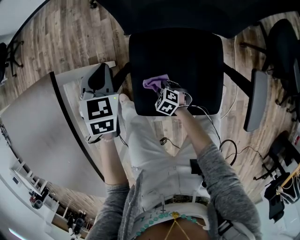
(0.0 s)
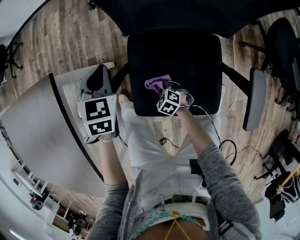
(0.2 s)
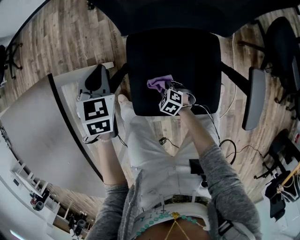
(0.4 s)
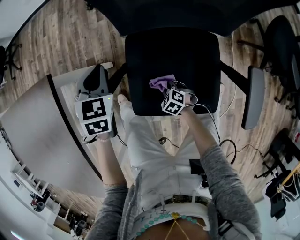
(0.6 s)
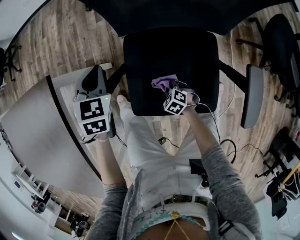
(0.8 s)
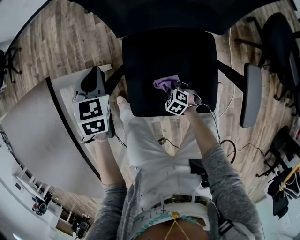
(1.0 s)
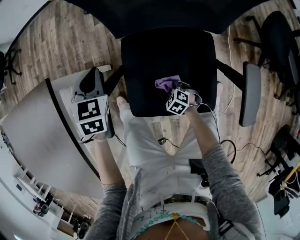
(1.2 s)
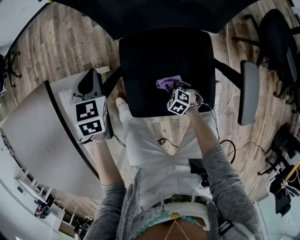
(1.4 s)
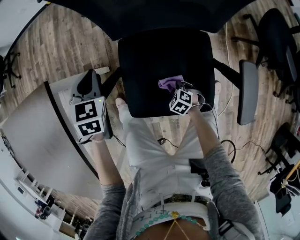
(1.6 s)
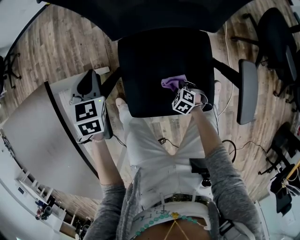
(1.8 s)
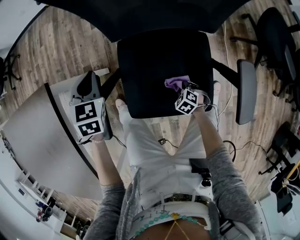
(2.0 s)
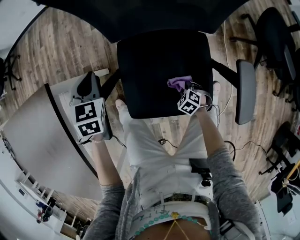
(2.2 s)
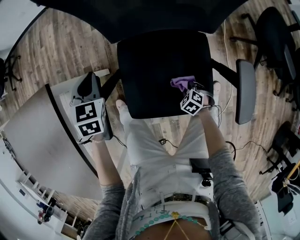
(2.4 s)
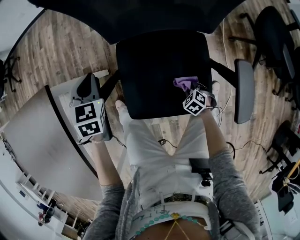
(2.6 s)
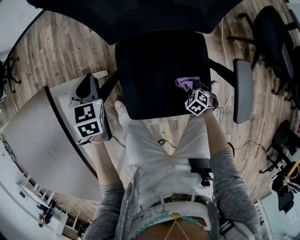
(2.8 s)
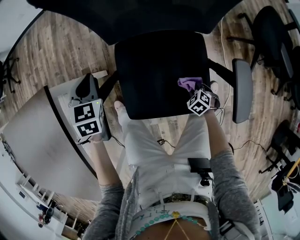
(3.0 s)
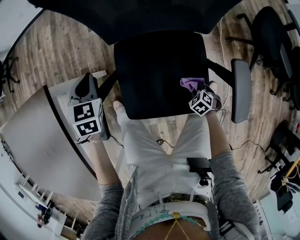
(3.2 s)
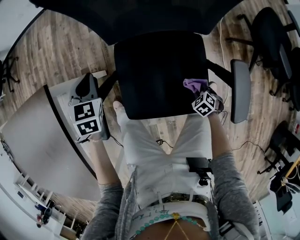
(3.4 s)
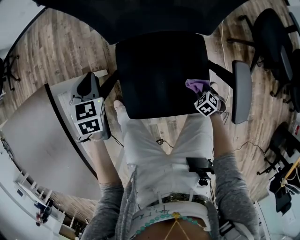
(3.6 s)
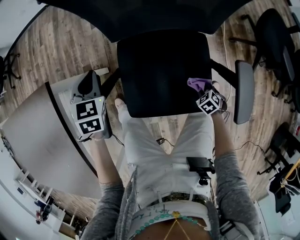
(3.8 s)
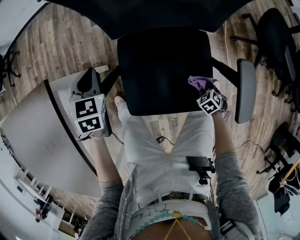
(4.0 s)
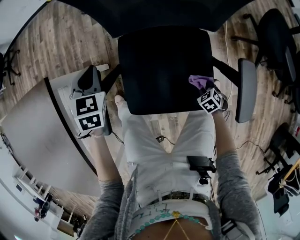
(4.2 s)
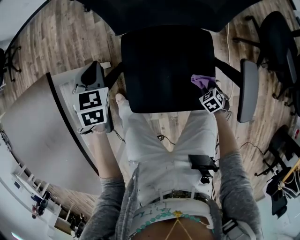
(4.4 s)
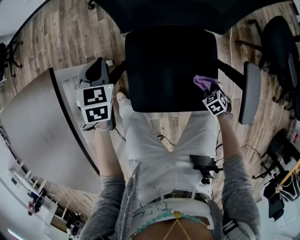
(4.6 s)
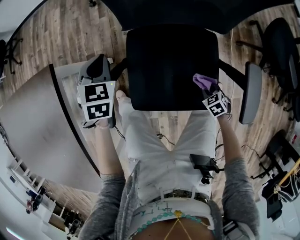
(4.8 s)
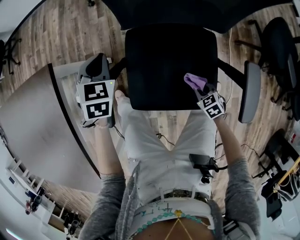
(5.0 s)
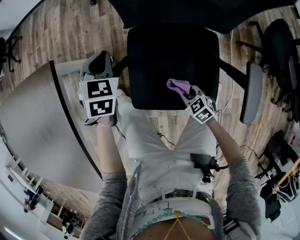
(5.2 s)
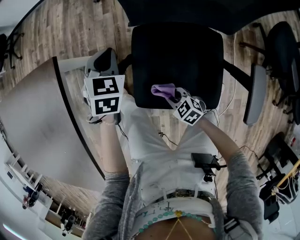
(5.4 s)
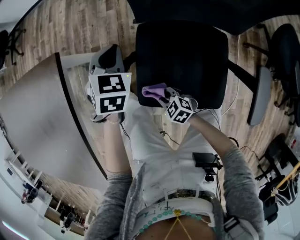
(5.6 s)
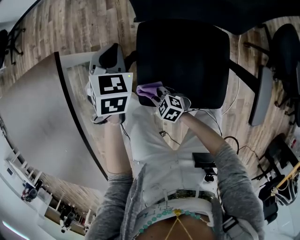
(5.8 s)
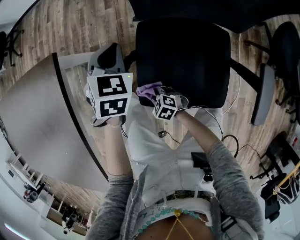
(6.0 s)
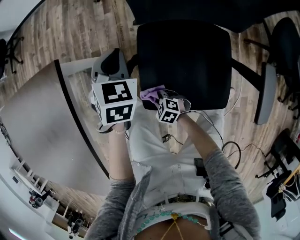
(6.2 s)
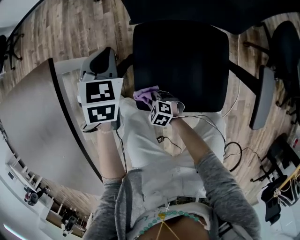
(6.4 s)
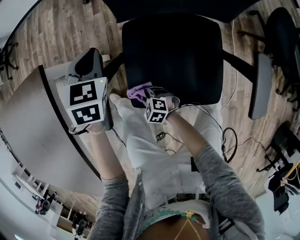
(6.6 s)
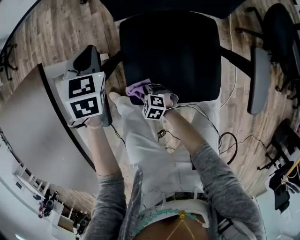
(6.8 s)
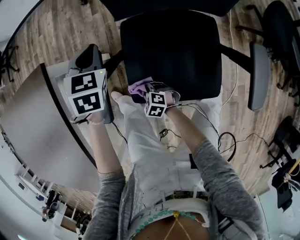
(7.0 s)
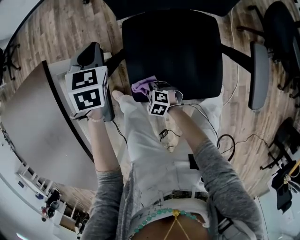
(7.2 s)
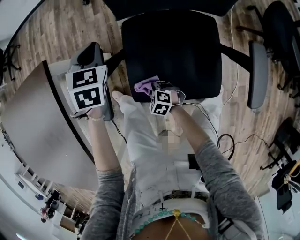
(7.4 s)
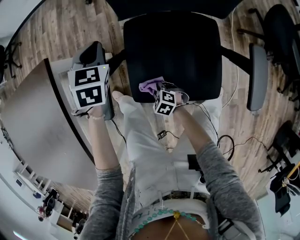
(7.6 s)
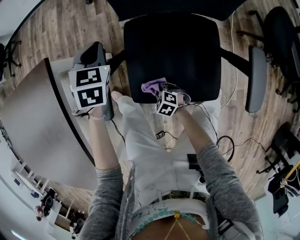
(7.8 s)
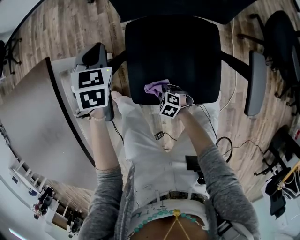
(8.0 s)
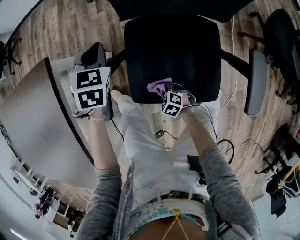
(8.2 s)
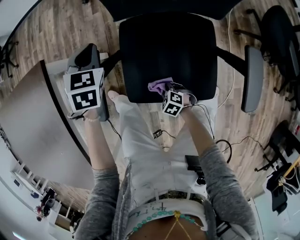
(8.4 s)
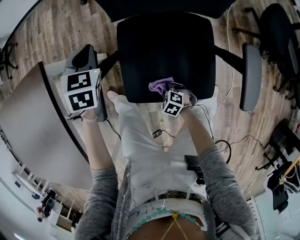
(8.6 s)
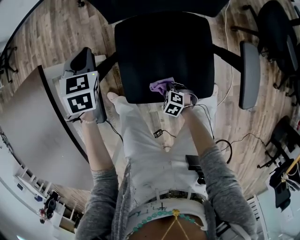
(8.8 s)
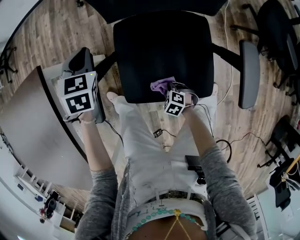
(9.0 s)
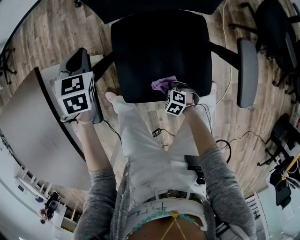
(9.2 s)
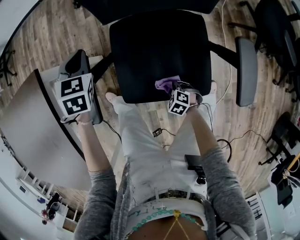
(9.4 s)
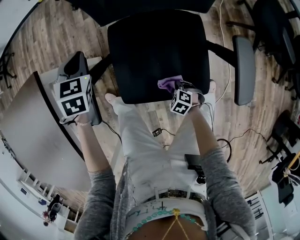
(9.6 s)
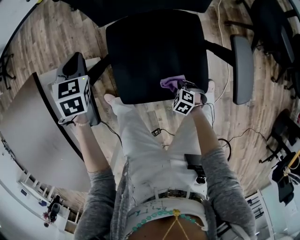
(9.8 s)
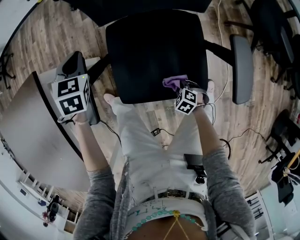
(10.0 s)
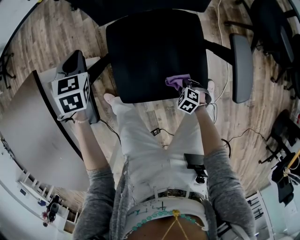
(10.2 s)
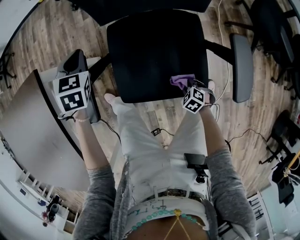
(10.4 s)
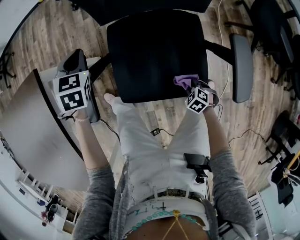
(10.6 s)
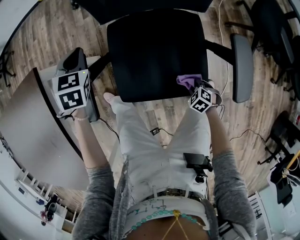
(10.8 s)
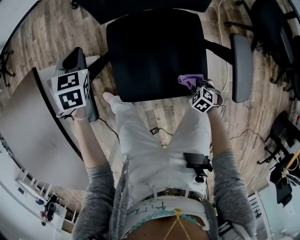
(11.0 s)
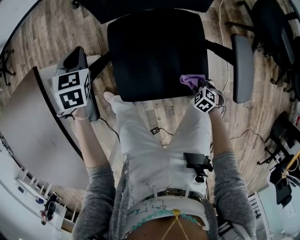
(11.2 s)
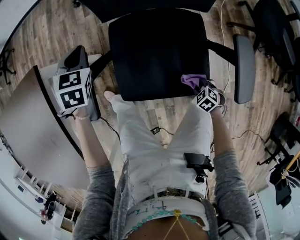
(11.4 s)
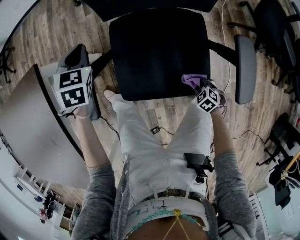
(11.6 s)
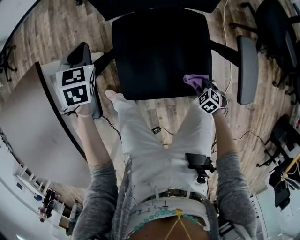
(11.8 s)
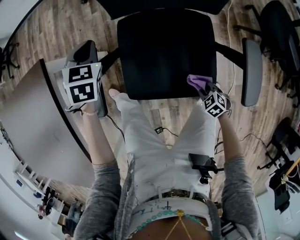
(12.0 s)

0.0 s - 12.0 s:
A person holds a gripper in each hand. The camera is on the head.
0.0 s - 1.6 s: The right gripper goes some 10 cm to the right and backward.
1.6 s - 3.0 s: The right gripper ends up approximately 10 cm from where it was.
3.0 s - 4.4 s: The grippers stay close to where they were, moving slightly.
4.4 s - 6.0 s: The right gripper travels upward and back again, some 10 cm each way, and changes its angle by about 40 degrees.
6.0 s - 7.6 s: The right gripper ends up roughly 5 cm from where it was.
7.6 s - 9.0 s: The right gripper is displaced backward and to the right by approximately 10 cm.
9.0 s - 10.4 s: The right gripper shifts by some 15 cm.
10.4 s - 12.0 s: The grippers move only a little.

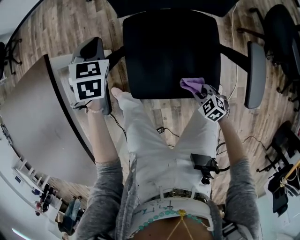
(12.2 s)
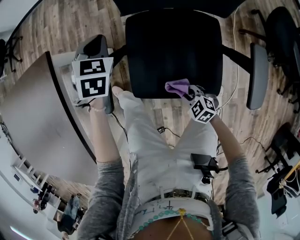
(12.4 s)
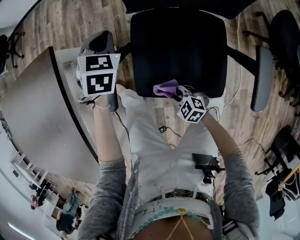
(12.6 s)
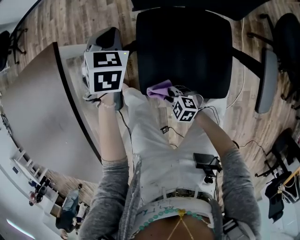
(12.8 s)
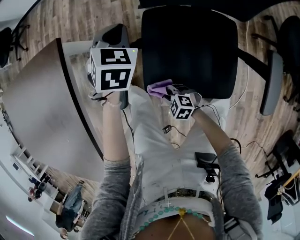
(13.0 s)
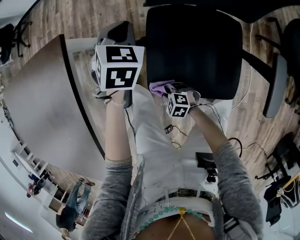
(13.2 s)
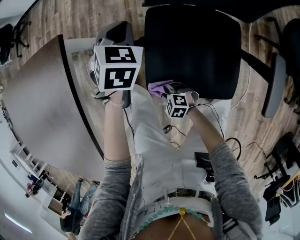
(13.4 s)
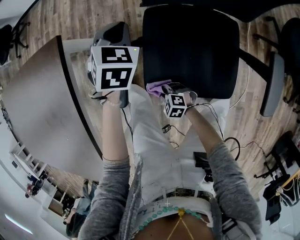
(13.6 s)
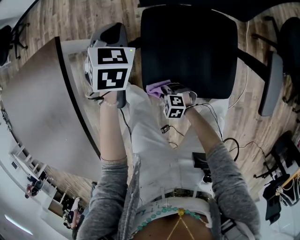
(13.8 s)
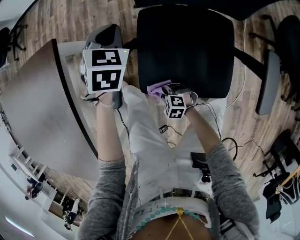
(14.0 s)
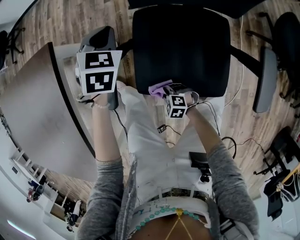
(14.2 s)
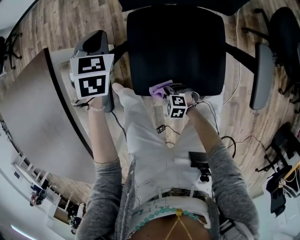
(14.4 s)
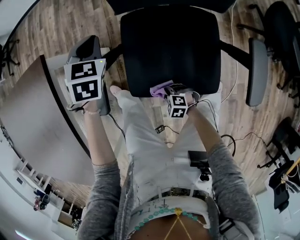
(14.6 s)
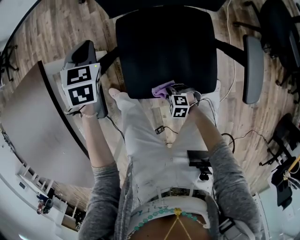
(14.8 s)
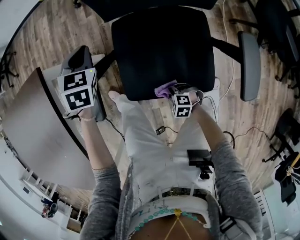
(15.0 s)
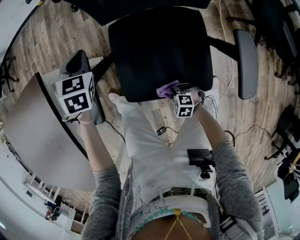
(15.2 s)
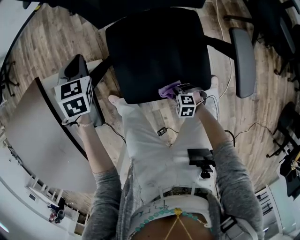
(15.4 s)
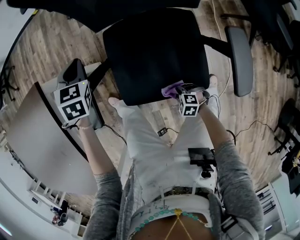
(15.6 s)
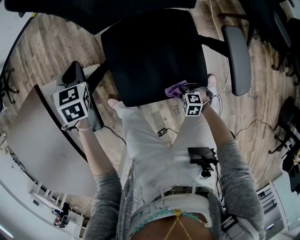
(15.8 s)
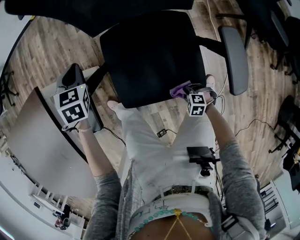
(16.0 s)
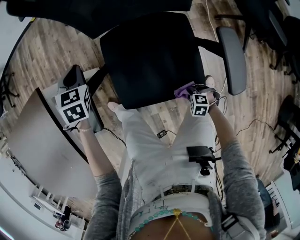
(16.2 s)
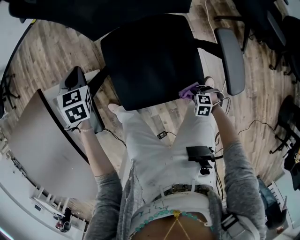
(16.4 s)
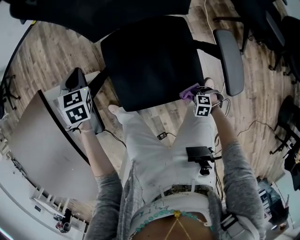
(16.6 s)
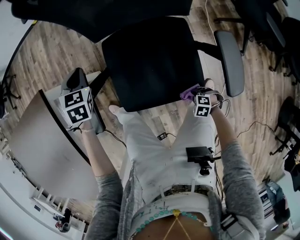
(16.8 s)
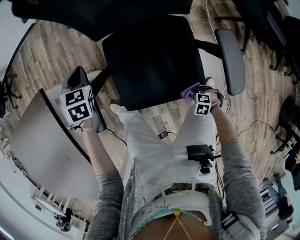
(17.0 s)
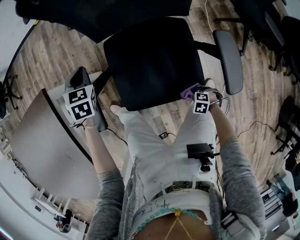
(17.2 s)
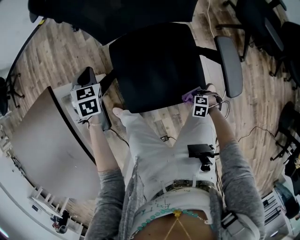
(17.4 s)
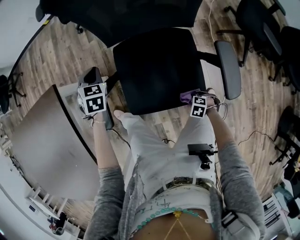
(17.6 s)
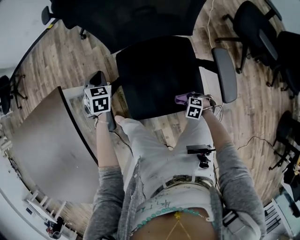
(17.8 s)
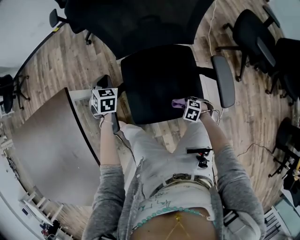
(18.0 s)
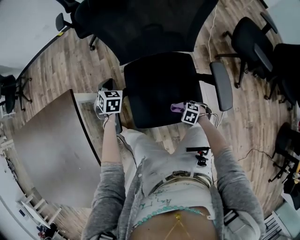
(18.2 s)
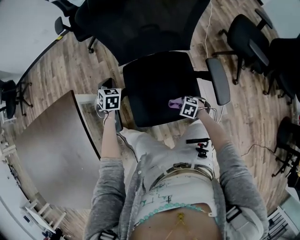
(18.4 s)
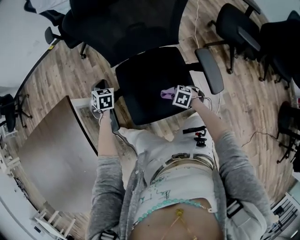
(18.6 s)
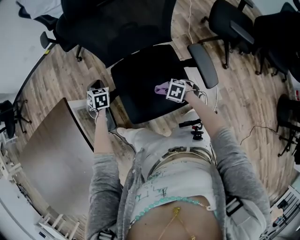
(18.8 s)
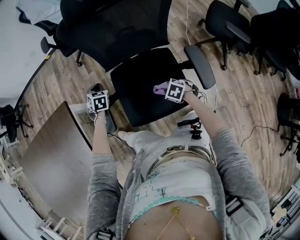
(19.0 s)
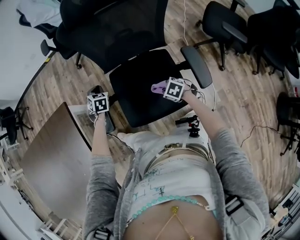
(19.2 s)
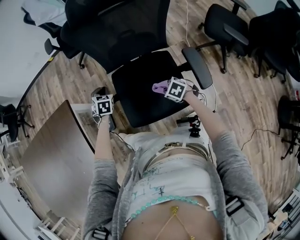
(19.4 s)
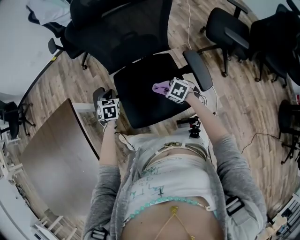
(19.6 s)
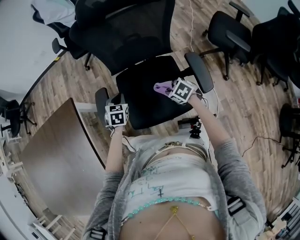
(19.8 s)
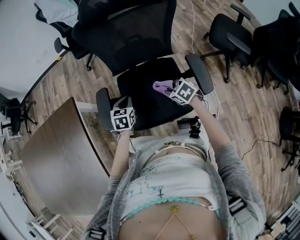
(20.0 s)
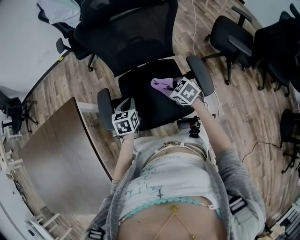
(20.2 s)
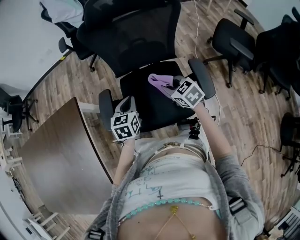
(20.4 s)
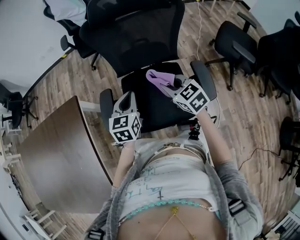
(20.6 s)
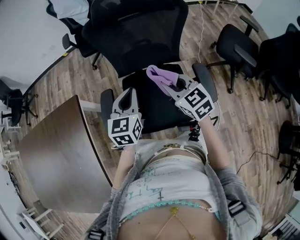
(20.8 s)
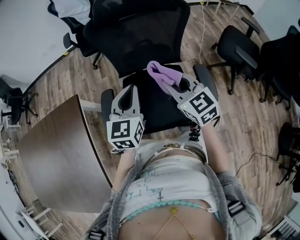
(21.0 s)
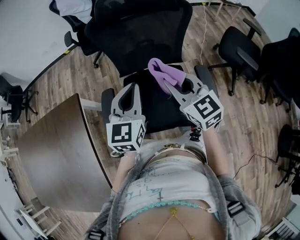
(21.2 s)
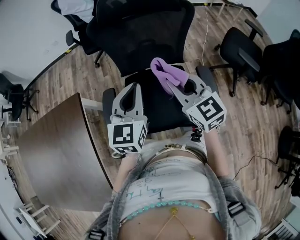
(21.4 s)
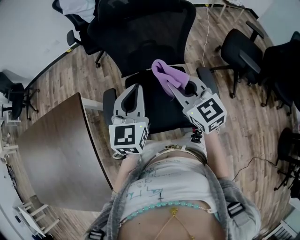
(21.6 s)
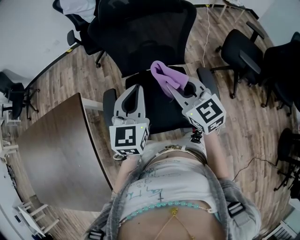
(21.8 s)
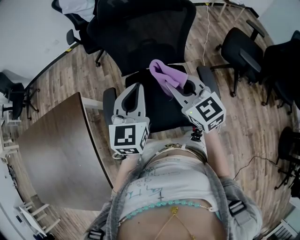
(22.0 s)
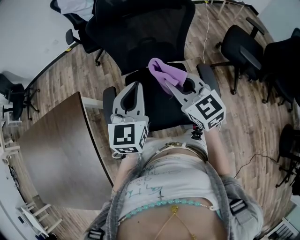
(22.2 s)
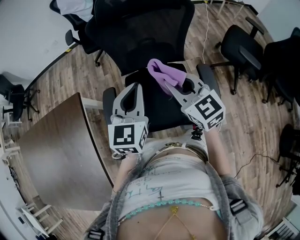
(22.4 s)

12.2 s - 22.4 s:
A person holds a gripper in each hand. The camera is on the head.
12.2 s - 13.6 s: The right gripper shifts some 25 cm to the left and forward, and changes its angle by approximately 30 degrees.
13.6 s - 15.2 s: The right gripper heads backward and to the right, covering roughly 15 cm.
15.2 s - 16.6 s: The right gripper ends up some 15 cm from where it was.
16.6 s - 18.0 s: The right gripper moves roughly 10 cm.
18.0 s - 19.4 s: The right gripper heads upward, covering about 15 cm, and changes its angle by about 20 degrees, while the left gripper ends up about 5 cm from where it was.
19.4 s - 21.0 s: The right gripper is displaced upward by approximately 30 cm, and angles its fingers upward, by roughly 50 degrees. Meanwhile the left gripper goes approximately 30 cm upward, backward and to the right, and tilts its fingers some 40 degrees upward.
21.0 s - 22.4 s: The grippers stay close to where they were, moving slightly.

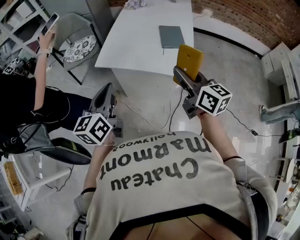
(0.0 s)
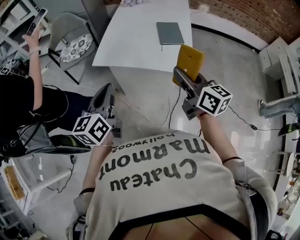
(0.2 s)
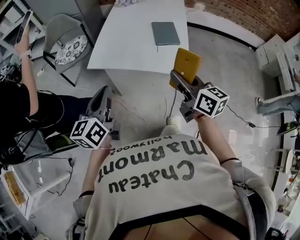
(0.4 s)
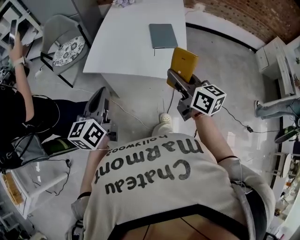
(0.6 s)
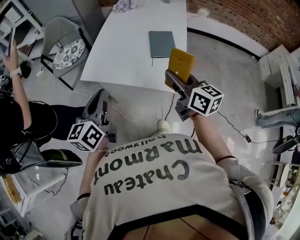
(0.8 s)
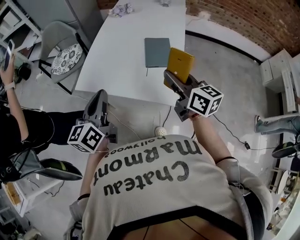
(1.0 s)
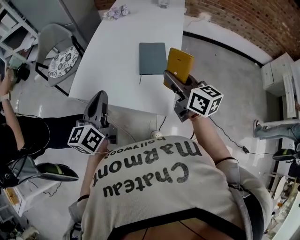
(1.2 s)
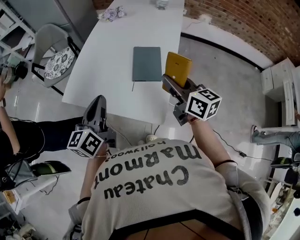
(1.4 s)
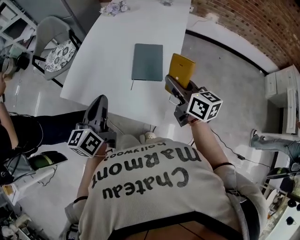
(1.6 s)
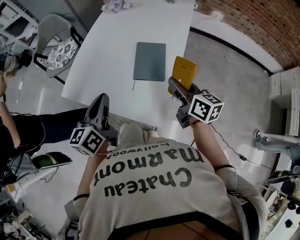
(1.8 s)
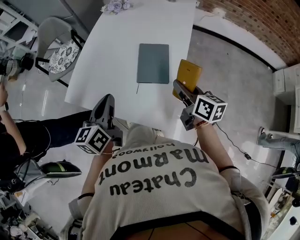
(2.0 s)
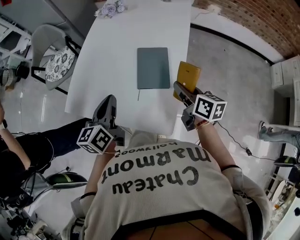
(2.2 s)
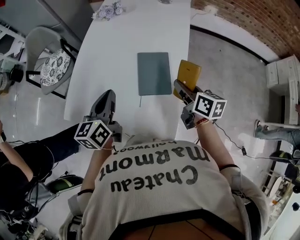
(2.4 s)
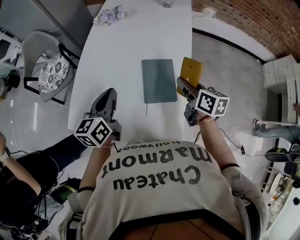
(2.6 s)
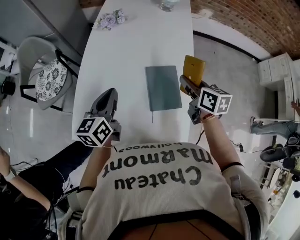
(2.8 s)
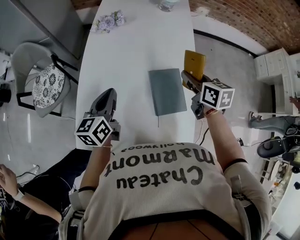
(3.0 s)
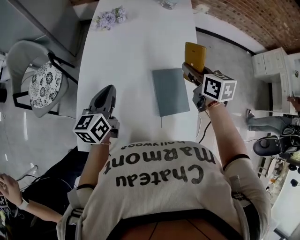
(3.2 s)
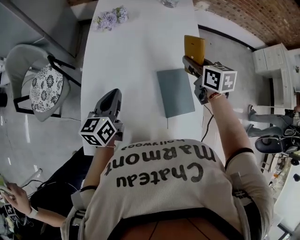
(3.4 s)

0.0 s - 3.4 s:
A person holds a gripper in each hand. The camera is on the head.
0.0 s - 1.6 s: The right gripper is displaced forward and to the right by approximately 35 cm, while the left gripper moves to the right and forward, about 30 cm.
1.6 s - 3.4 s: Both grippers move forward, approximately 30 cm. The right gripper turns by about 30 degrees. Meanwhile the left gripper turns by approximately 20 degrees.
